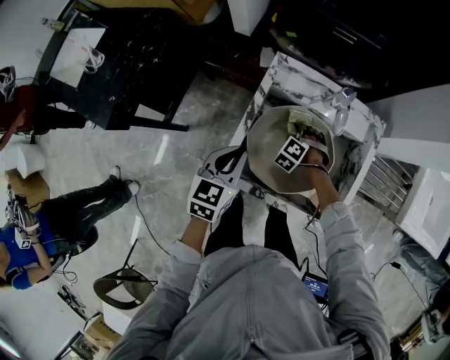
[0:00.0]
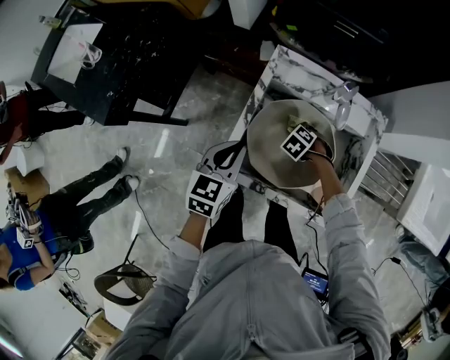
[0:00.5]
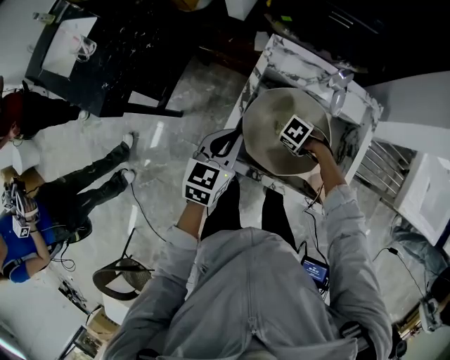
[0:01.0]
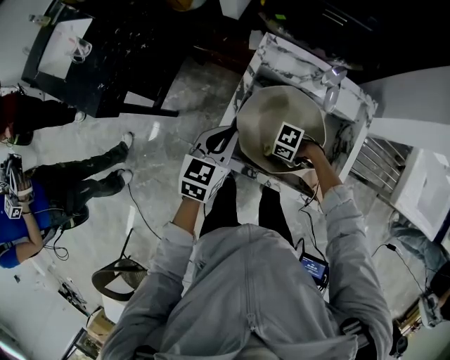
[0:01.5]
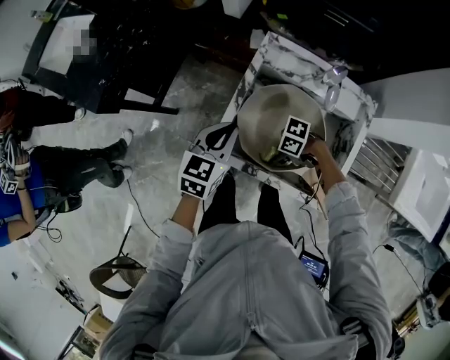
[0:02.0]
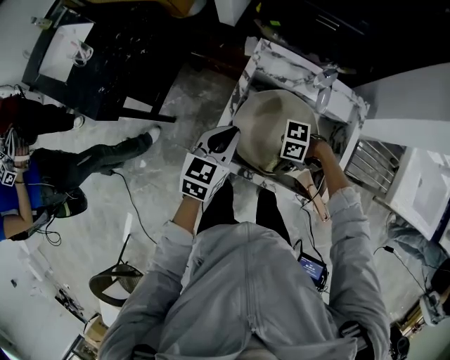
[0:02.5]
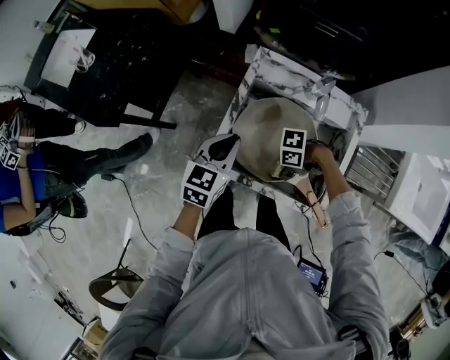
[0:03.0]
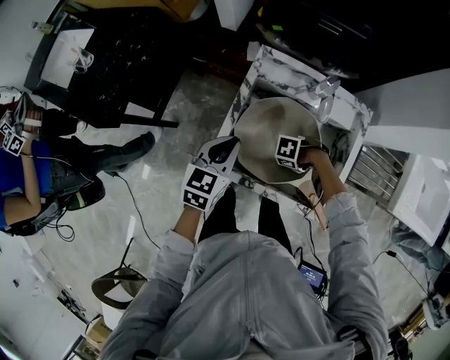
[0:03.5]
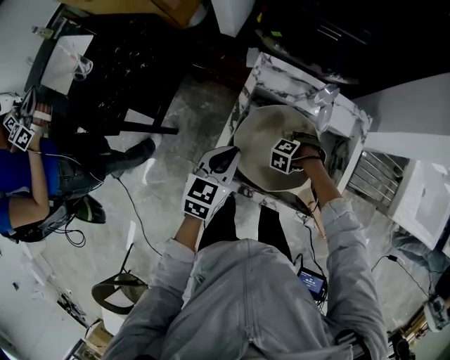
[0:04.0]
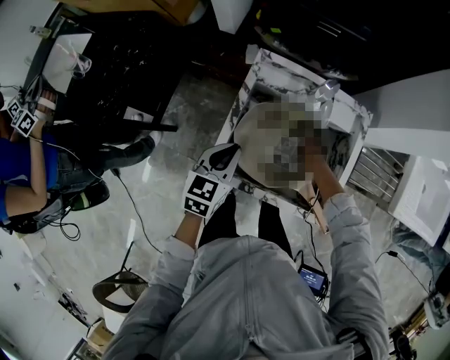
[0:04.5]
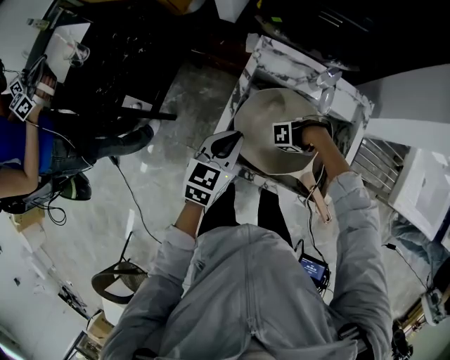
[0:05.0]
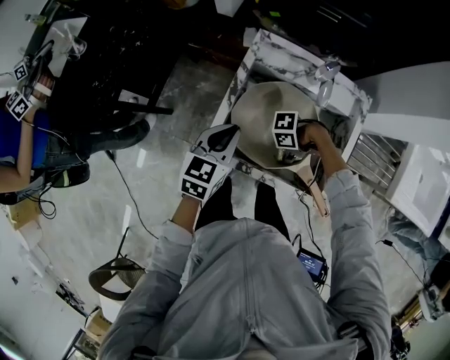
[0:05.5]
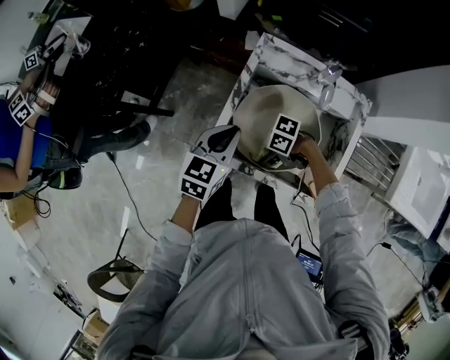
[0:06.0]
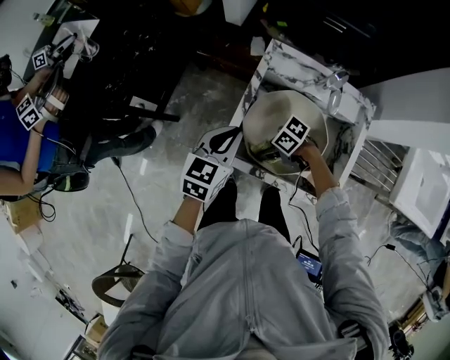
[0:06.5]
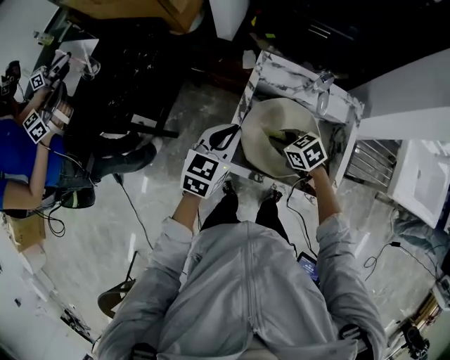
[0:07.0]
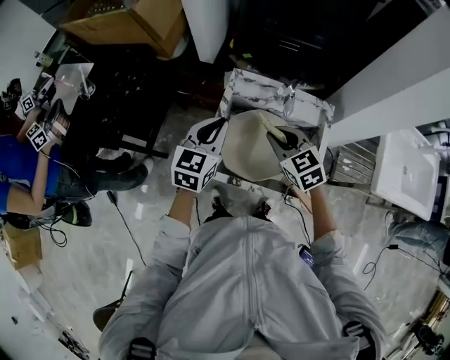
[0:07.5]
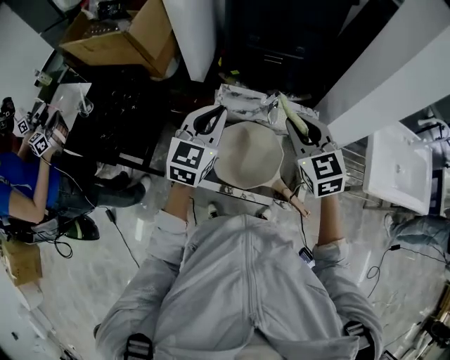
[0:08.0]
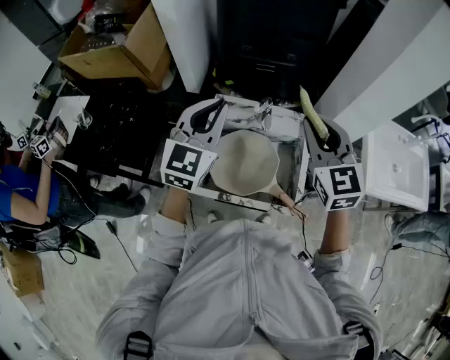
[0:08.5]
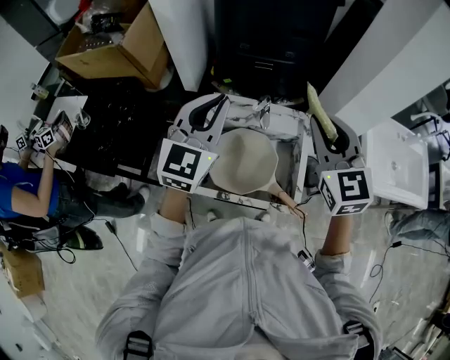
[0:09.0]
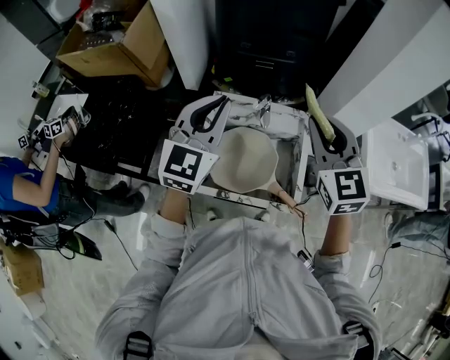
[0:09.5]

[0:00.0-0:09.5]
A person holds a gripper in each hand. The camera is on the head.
0:00.0 to 0:02.0: The right gripper changes place by some 20 cm, and changes its angle by about 80 degrees.
0:02.0 to 0:04.0: The right gripper ends up some 20 cm from where it was, and angles its fingers downward, by approximately 40 degrees.
0:04.0 to 0:05.5: The right gripper ends up about 15 cm from where it was, and tilts its fingers some 40 degrees upward.
0:05.5 to 0:07.5: The right gripper is displaced upward by approximately 25 cm, and swivels approximately 100 degrees. The left gripper shifts about 15 cm upward.
0:07.5 to 0:09.5: The left gripper is displaced upward by roughly 20 cm, and changes its angle by some 30 degrees. Meanwhile the right gripper goes approximately 25 cm upward and to the right, and turns by roughly 30 degrees.

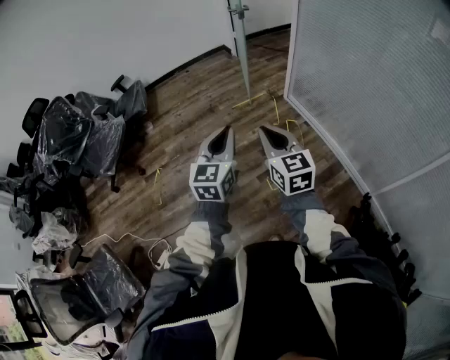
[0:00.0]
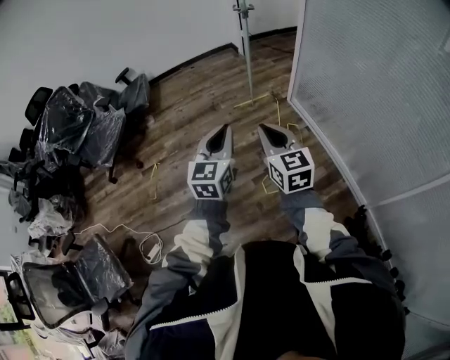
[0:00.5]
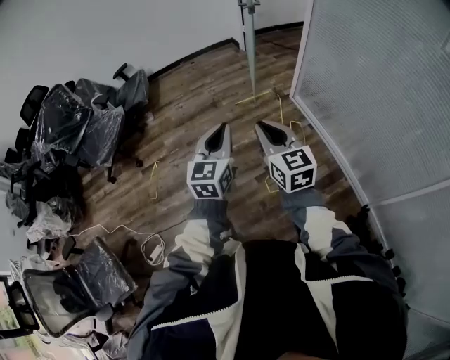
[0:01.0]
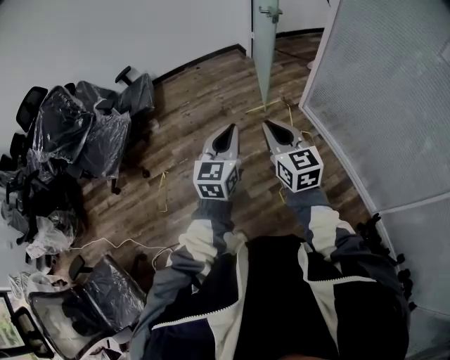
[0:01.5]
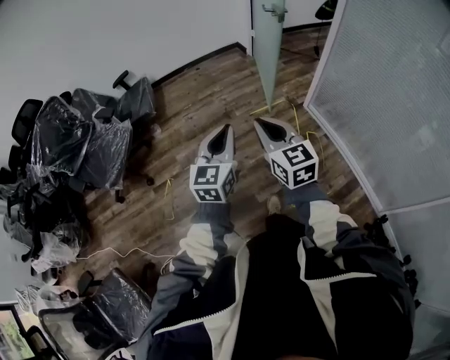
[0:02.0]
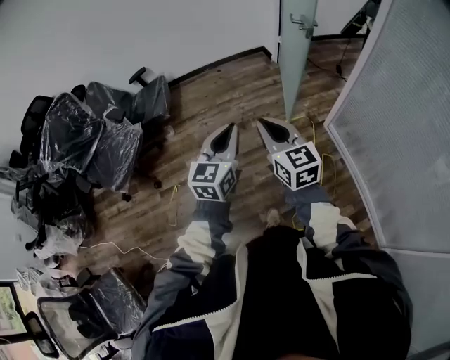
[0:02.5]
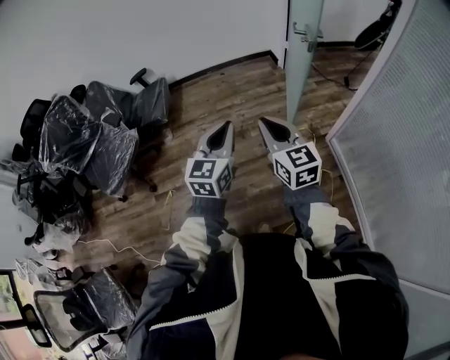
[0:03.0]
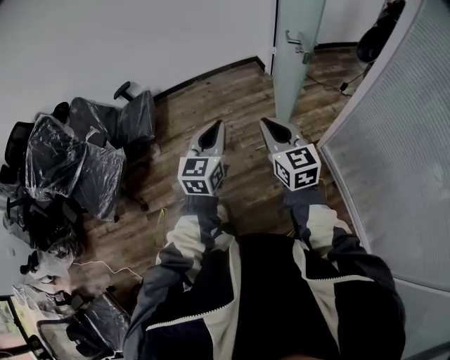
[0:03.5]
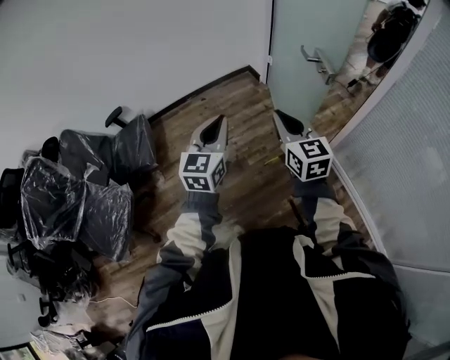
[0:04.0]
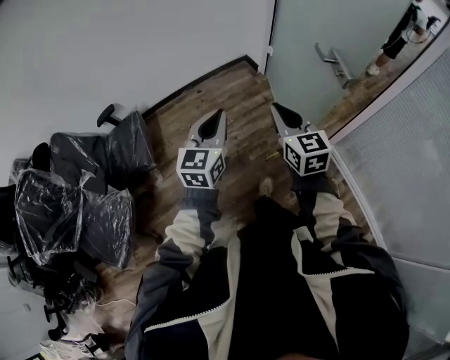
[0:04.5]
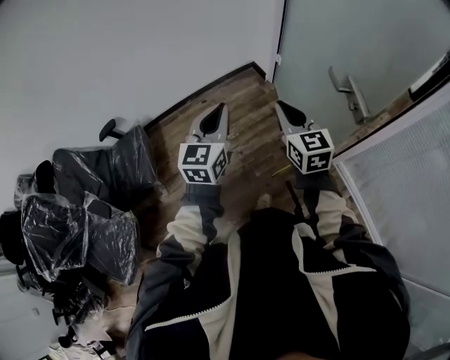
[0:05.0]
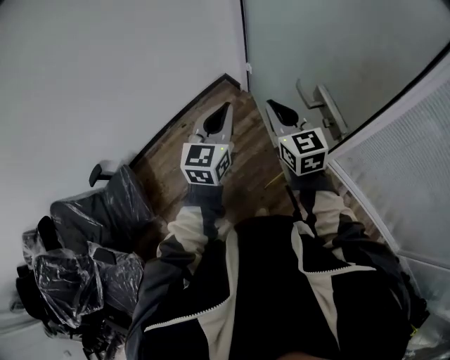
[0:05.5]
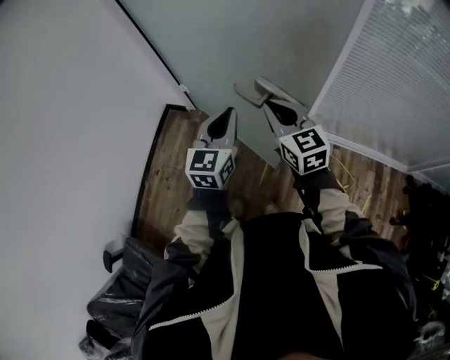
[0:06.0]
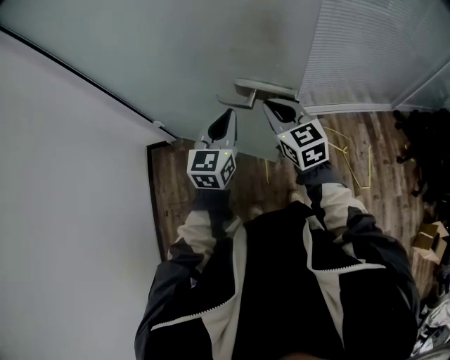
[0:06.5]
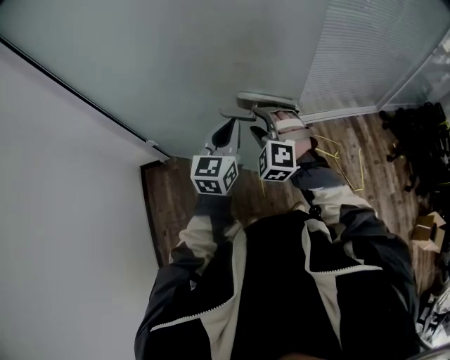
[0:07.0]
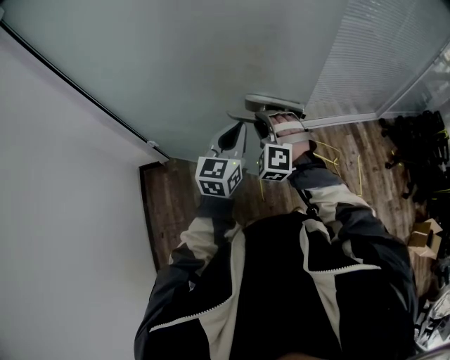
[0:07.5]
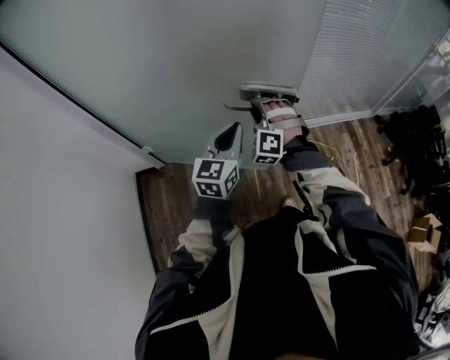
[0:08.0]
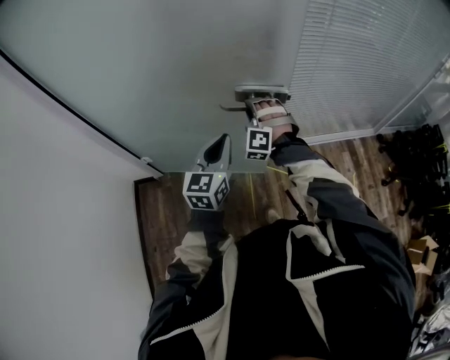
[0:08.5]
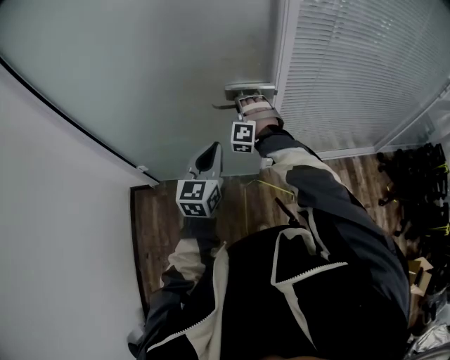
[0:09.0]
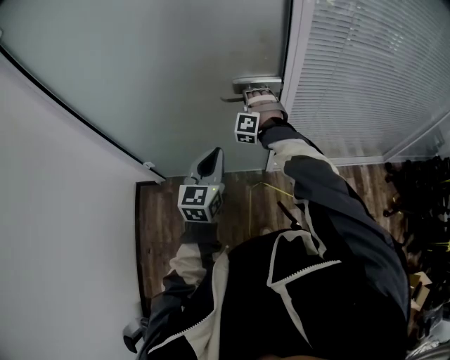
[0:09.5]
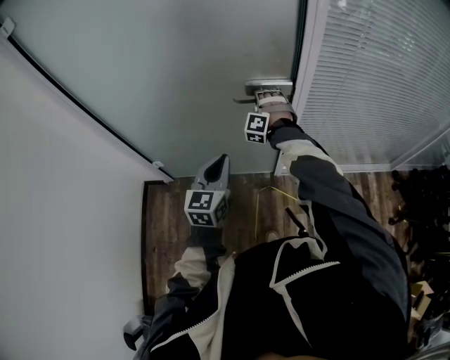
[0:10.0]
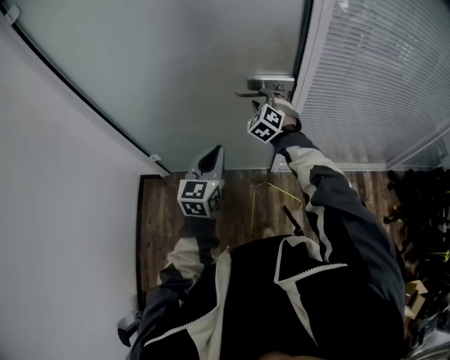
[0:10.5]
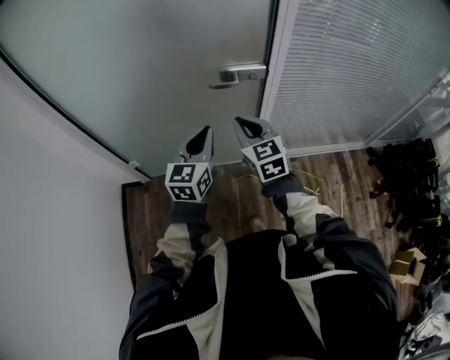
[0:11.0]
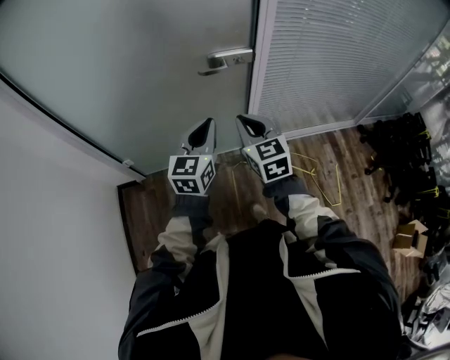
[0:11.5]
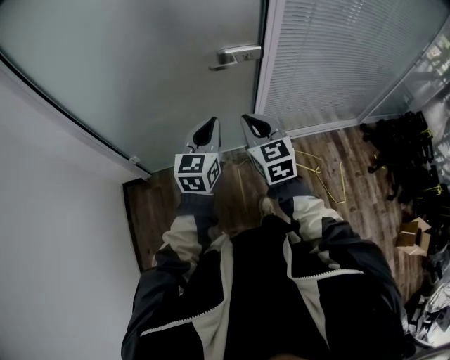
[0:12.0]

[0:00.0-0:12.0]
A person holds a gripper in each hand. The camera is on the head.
0:00.0 to 0:02.0: The two grippers go roughly 25 cm forward and to the left.
0:02.0 to 0:04.0: The pair of grippers is taken forward, roughly 50 cm.
0:04.0 to 0:06.0: The right gripper shifts by roughly 35 cm, and rotates about 40 degrees, while the left gripper ends up about 40 cm from where it was, and swivels about 40 degrees.
0:06.0 to 0:08.0: The left gripper moves some 10 cm, and swivels approximately 30 degrees; the right gripper changes place by about 15 cm, turns by approximately 80 degrees, and opens its fingers.
0:08.0 to 0:10.0: The right gripper is displaced forward by about 25 cm. Meanwhile the left gripper shifts roughly 10 cm forward.
0:10.0 to 0:12.0: The right gripper moves backward, about 30 cm, rolls clockwise, seen from behind, by about 80 degrees, and closes its fingers; the left gripper moves some 5 cm.

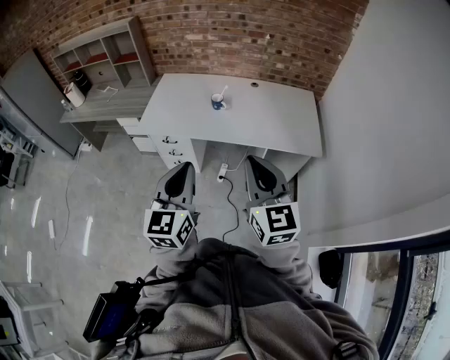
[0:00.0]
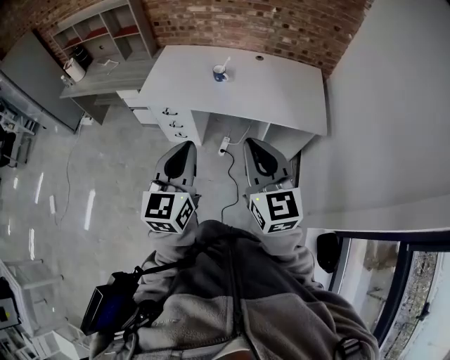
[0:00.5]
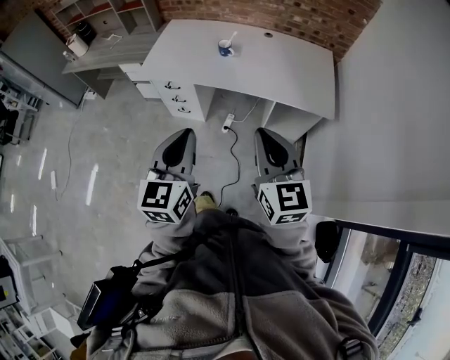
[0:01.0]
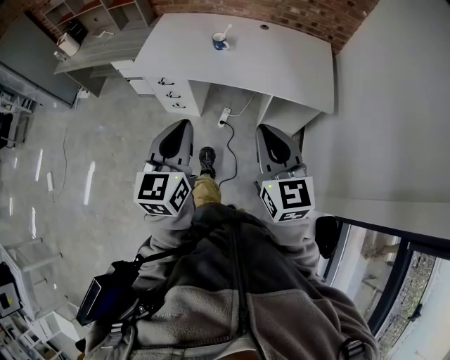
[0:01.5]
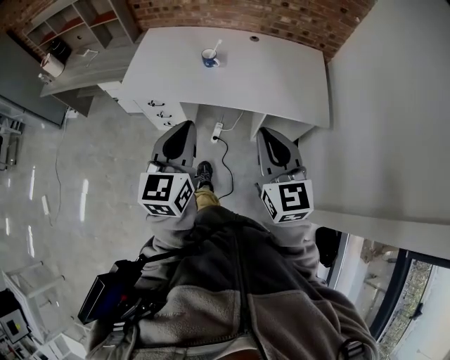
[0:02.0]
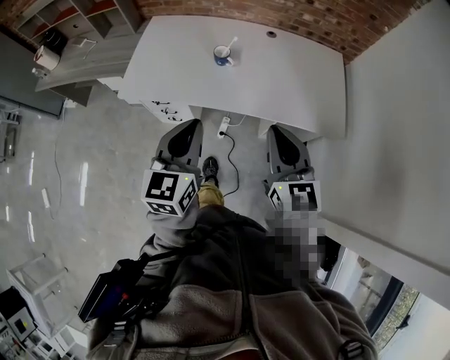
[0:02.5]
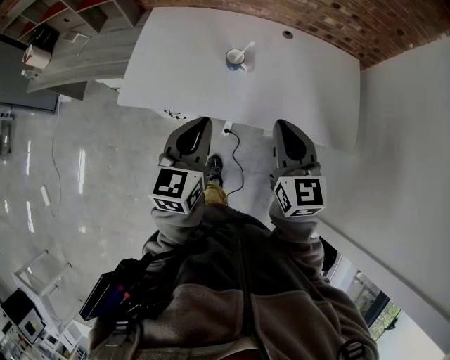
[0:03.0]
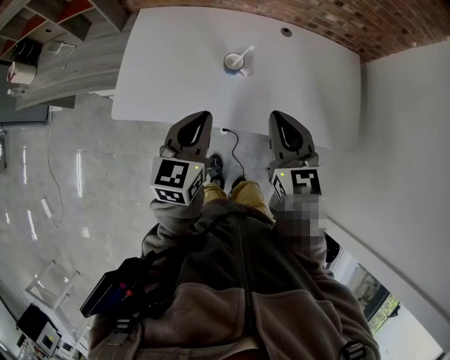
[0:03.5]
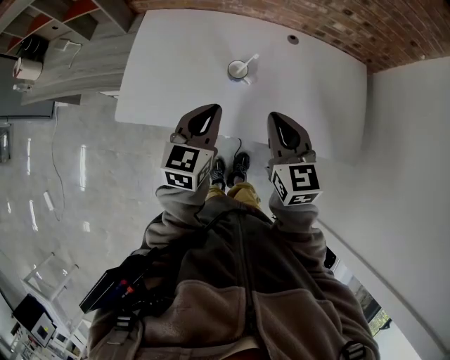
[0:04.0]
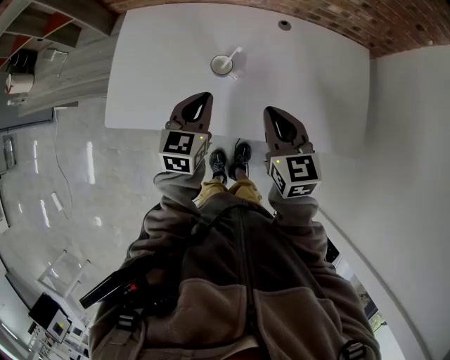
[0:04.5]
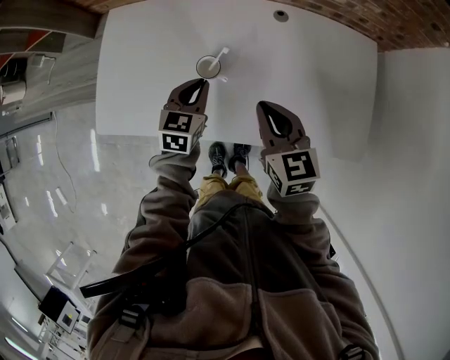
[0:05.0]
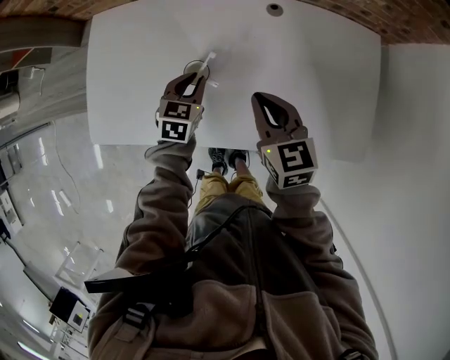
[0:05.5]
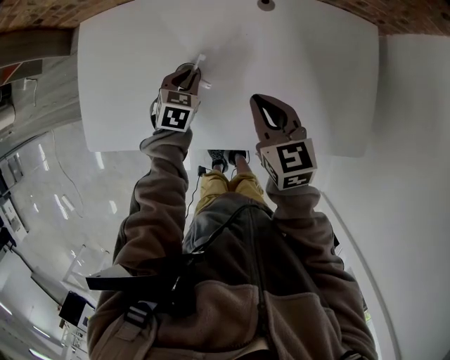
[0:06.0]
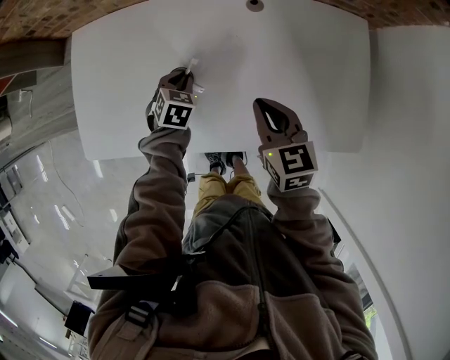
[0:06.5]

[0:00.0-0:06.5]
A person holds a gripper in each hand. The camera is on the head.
0:00.0 to 0:02.0: The right gripper moves forward, downward and to the right, approximately 15 cm. Meanwhile the left gripper is displaced forward and downward by about 10 cm.
0:02.0 to 0:04.5: The right gripper shifts roughly 40 cm forward, and changes its angle by some 20 degrees. Meanwhile the left gripper is displaced forward and downward by approximately 40 cm, and swivels roughly 20 degrees.
0:04.5 to 0:06.5: The right gripper goes roughly 15 cm downward, forward and to the right, while the left gripper heads downward and forward, covering about 25 cm, and points its fingers some 30 degrees further downward.
